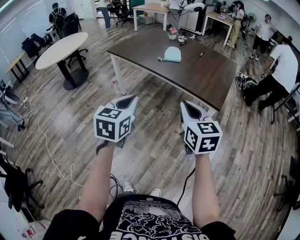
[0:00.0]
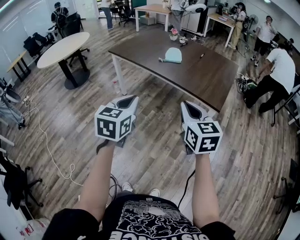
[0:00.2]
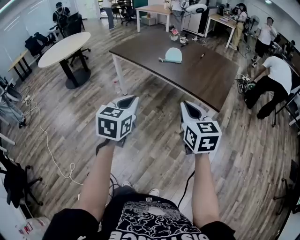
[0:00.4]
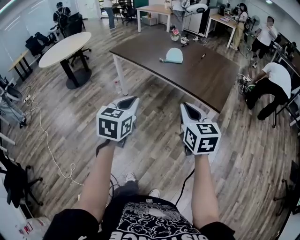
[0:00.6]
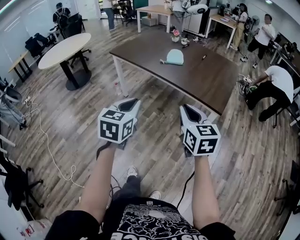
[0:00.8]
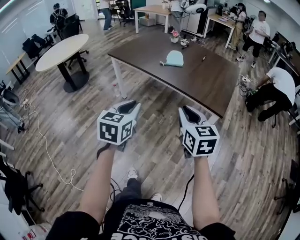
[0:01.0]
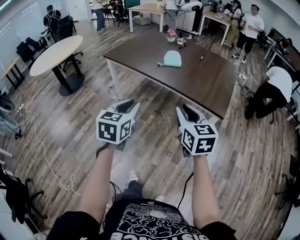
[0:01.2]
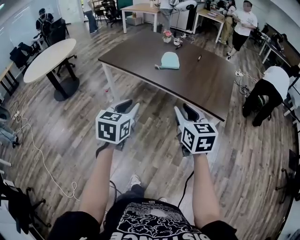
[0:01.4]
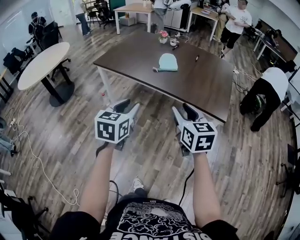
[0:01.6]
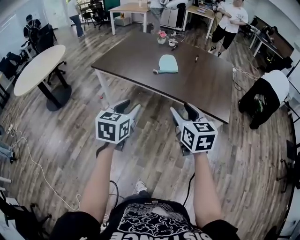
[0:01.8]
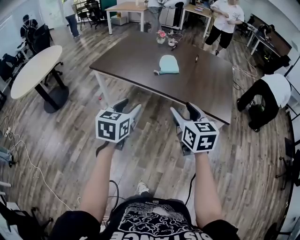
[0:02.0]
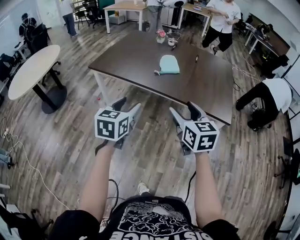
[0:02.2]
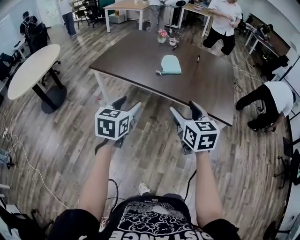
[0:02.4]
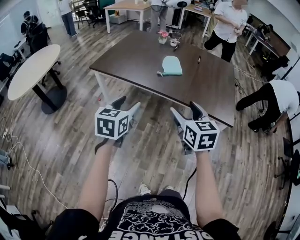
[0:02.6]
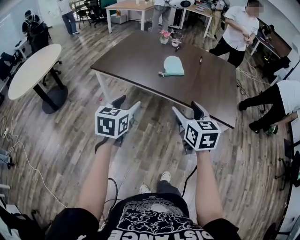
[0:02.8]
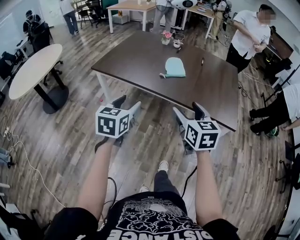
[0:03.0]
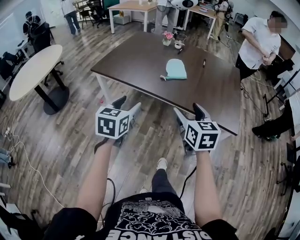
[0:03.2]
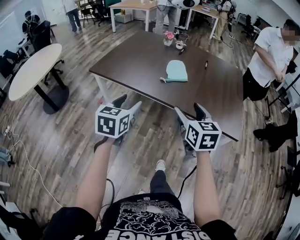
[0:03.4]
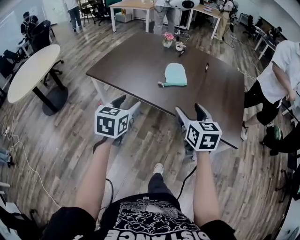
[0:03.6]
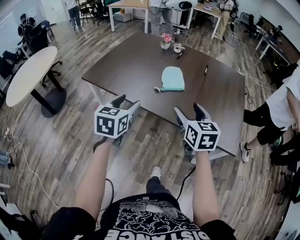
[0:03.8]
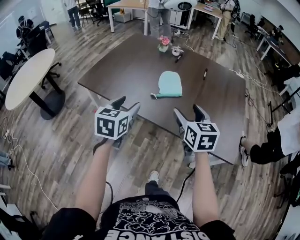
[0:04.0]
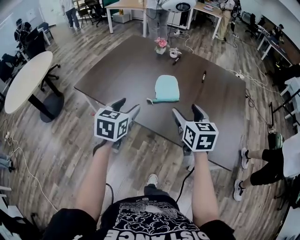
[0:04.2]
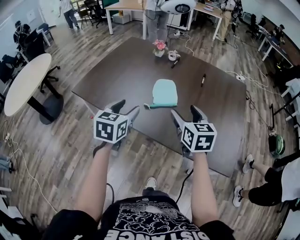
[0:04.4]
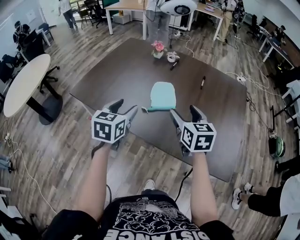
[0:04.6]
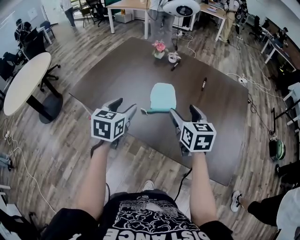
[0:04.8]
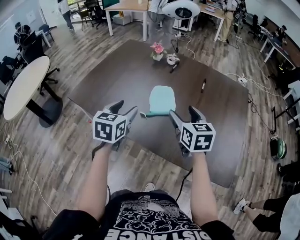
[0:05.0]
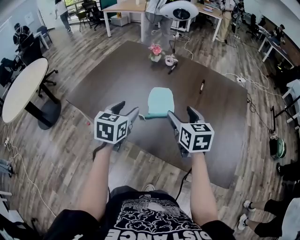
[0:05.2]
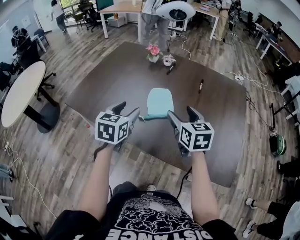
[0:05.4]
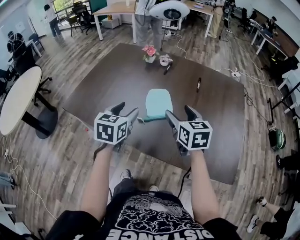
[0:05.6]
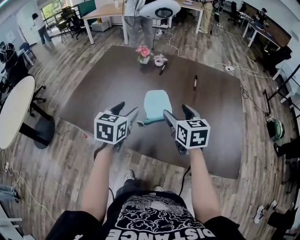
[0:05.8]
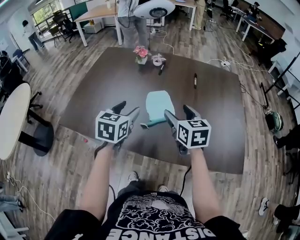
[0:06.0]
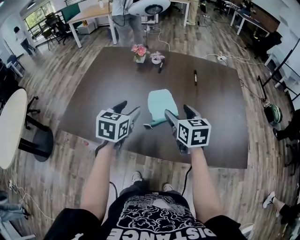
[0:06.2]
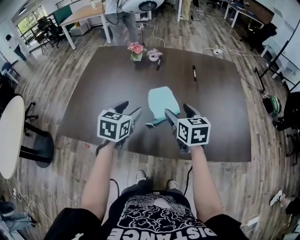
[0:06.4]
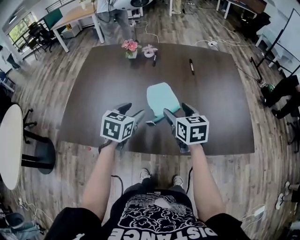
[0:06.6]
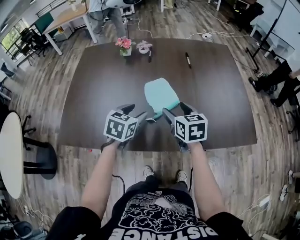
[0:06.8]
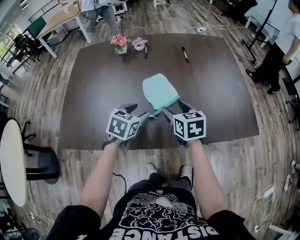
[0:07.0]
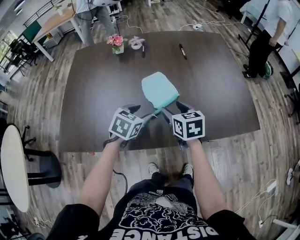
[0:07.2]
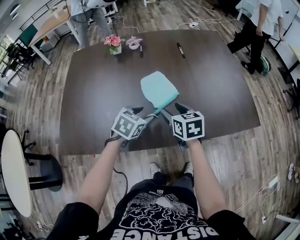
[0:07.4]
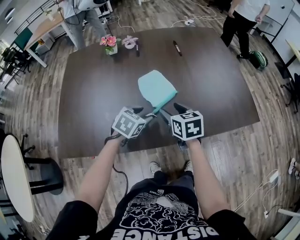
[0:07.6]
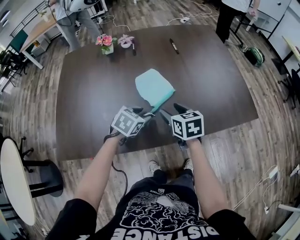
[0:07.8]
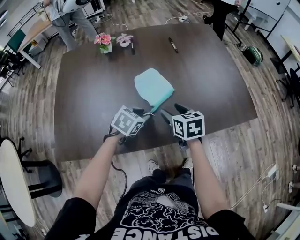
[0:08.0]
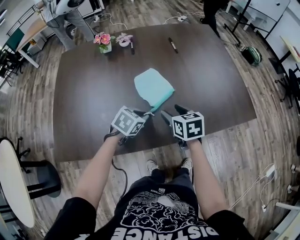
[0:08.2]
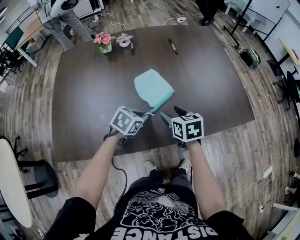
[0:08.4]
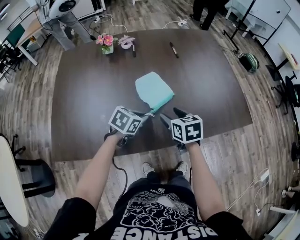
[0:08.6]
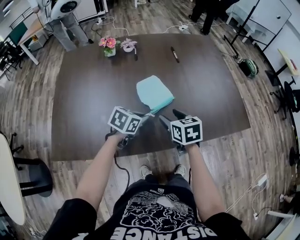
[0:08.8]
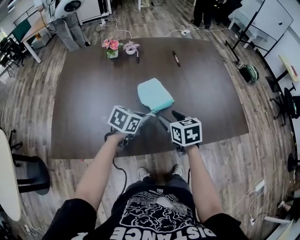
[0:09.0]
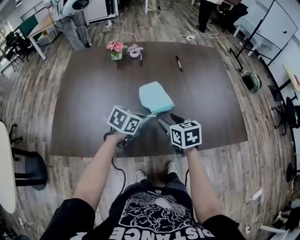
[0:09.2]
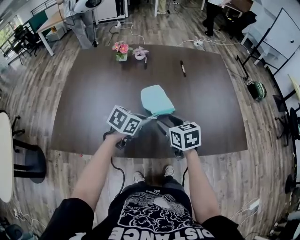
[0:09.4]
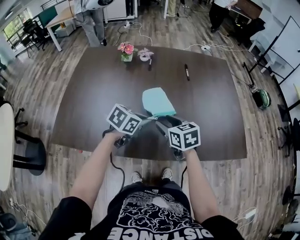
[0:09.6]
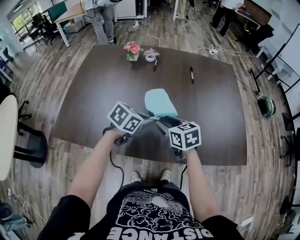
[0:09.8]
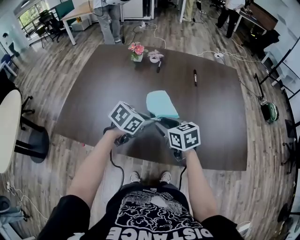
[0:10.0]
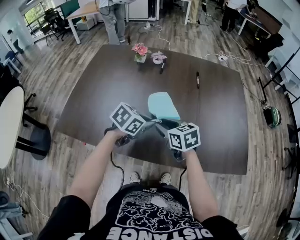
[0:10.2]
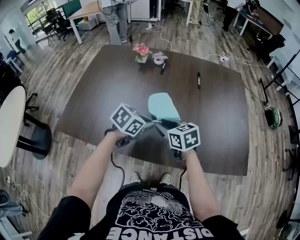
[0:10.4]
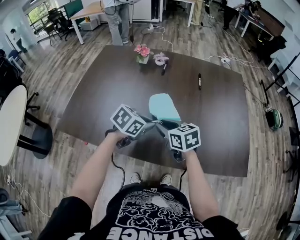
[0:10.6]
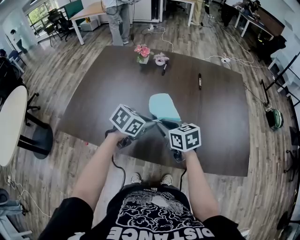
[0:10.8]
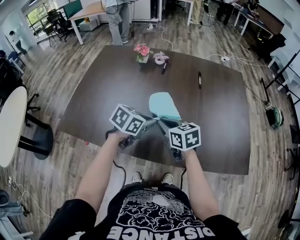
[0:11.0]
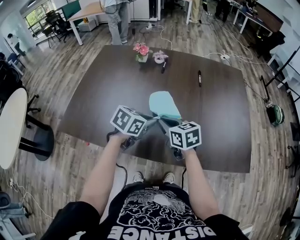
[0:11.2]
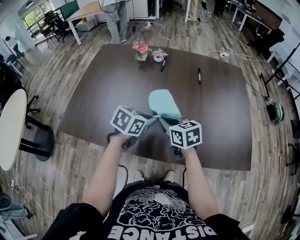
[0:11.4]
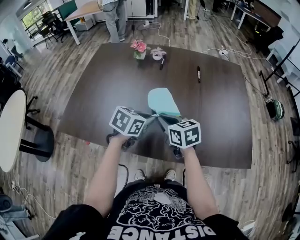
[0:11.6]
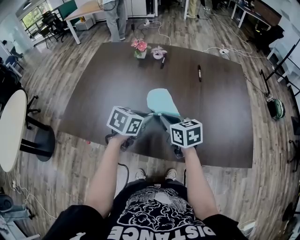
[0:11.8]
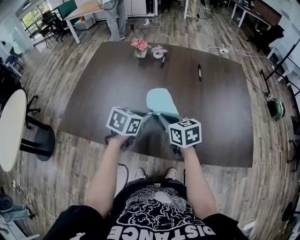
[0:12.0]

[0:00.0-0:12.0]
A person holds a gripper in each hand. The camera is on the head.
0:00.0 to 0:01.6: The left gripper is displaced forward by about 15 cm, and opens. The right gripper goes about 15 cm forward and to the left, and opens up.
0:01.6 to 0:03.0: Both grippers move forward and to the left, some 15 cm. The left gripper opens up, while the right gripper opens its fingers.
0:03.0 to 0:04.4: The two grippers go approximately 25 cm forward.
0:04.4 to 0:06.0: The two grippers go some 10 cm forward.
0:06.0 to 0:07.6: Both grippers travel together downward, roughly 15 cm. The left gripper turns by approximately 50 degrees. The right gripper swivels approximately 20 degrees.
0:07.6 to 0:09.0: The left gripper closes up.
0:09.0 to 0:10.4: The right gripper changes place by roughly 5 cm, swivels roughly 30 degrees, and closes up.
0:10.4 to 0:12.0: The grippers move only a little.

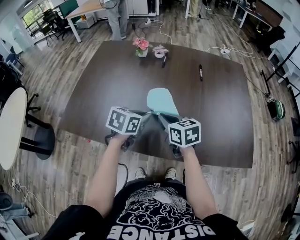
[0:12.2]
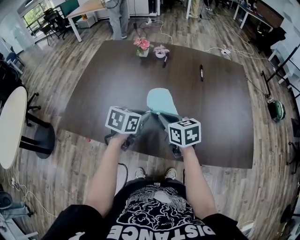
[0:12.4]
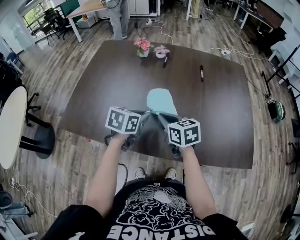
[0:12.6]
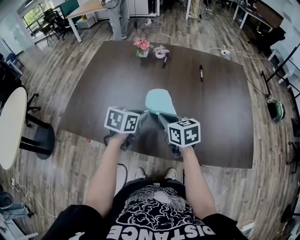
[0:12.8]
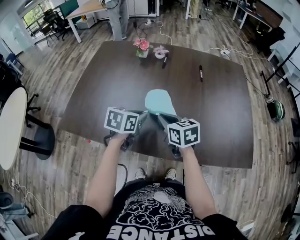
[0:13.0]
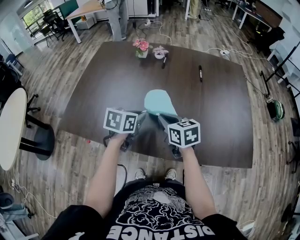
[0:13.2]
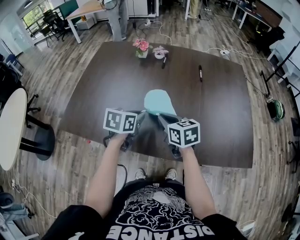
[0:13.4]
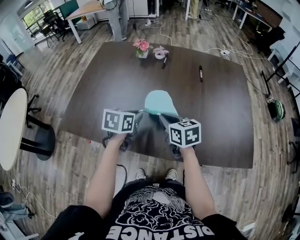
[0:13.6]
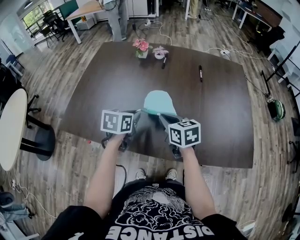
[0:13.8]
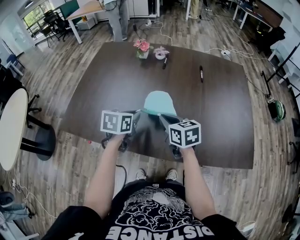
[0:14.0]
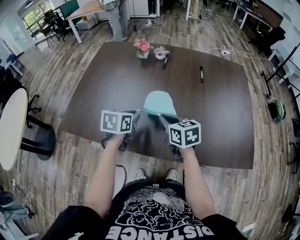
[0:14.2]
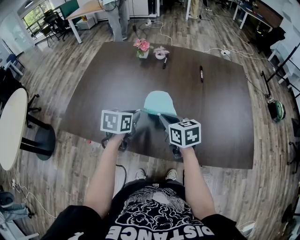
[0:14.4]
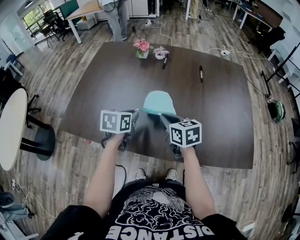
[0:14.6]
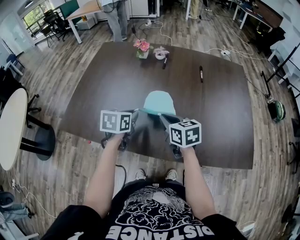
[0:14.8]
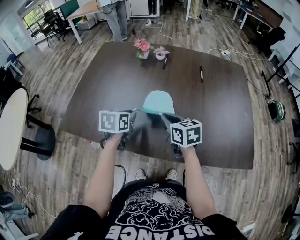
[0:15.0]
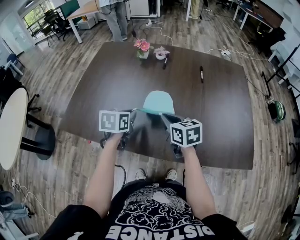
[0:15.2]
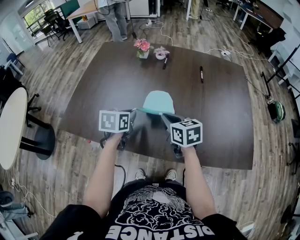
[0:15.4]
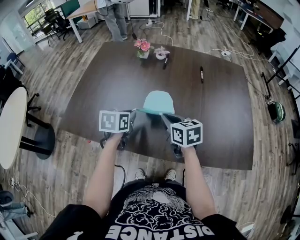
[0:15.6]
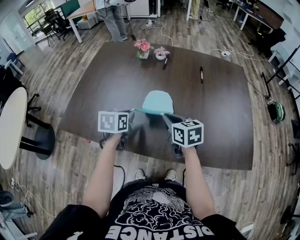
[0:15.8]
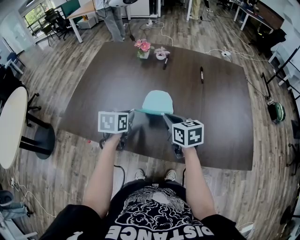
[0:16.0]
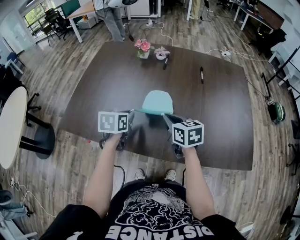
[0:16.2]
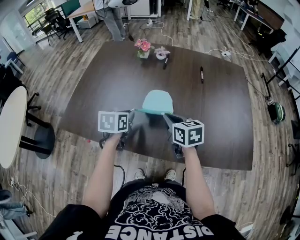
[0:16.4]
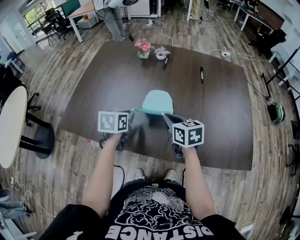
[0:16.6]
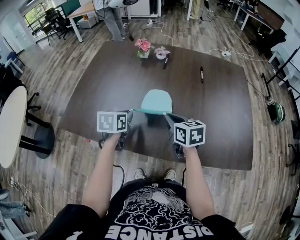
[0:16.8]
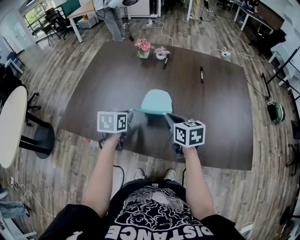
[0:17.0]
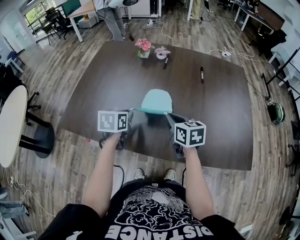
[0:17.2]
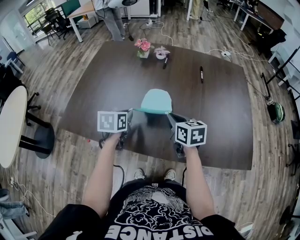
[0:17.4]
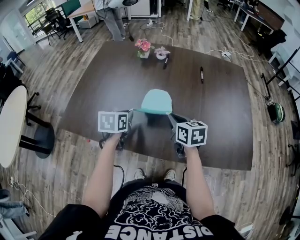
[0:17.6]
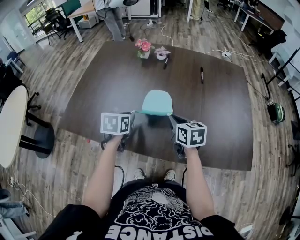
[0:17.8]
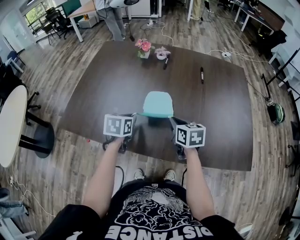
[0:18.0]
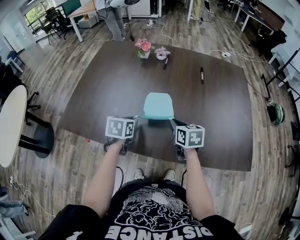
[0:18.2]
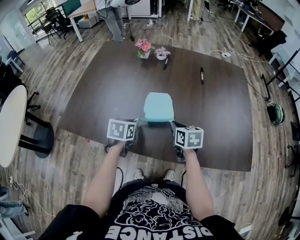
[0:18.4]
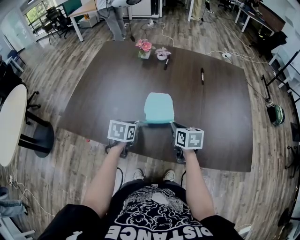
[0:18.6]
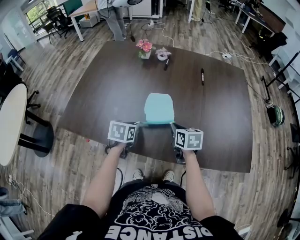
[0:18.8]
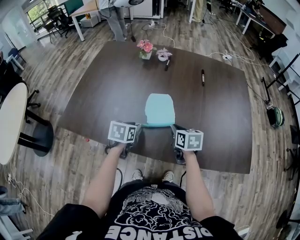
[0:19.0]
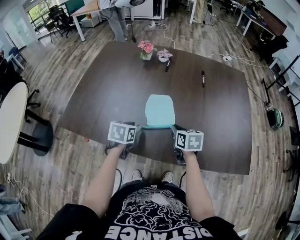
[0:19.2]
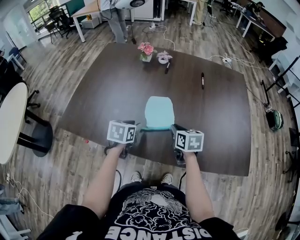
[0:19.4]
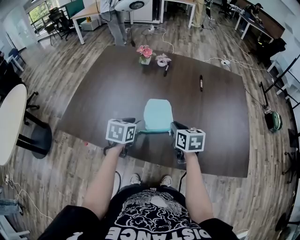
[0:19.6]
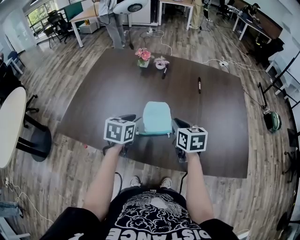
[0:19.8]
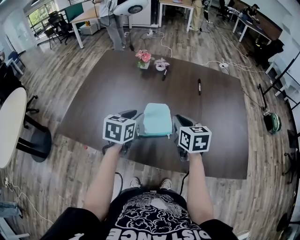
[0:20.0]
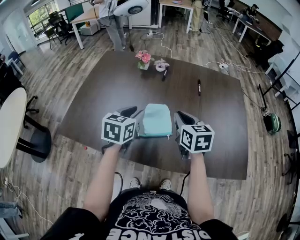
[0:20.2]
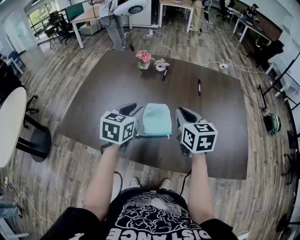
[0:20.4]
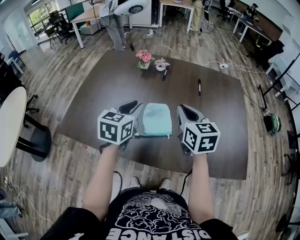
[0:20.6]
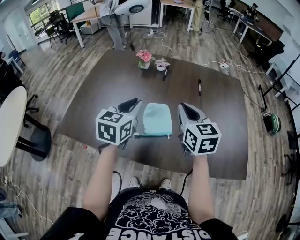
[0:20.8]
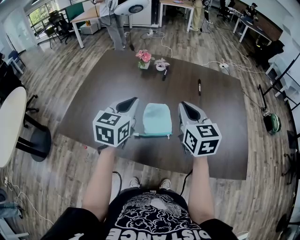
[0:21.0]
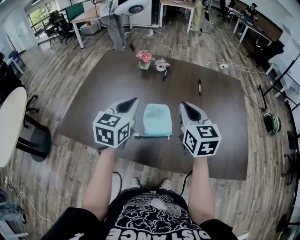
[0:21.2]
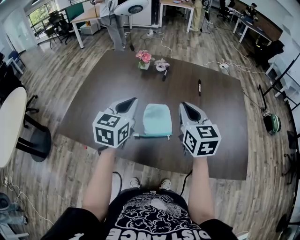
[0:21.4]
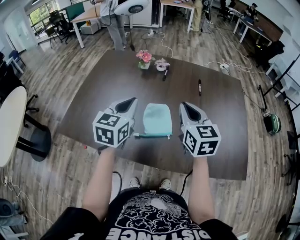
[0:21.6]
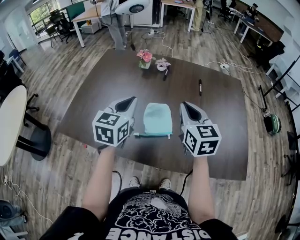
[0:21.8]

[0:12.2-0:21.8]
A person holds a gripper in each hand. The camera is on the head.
0:12.2 to 0:13.8: The left gripper moves some 5 cm.
0:13.8 to 0:17.0: There are only small adjustments of the grippers.
0:17.0 to 0:18.6: Both grippers move downward, about 5 cm.
0:18.6 to 0:20.2: Both grippers move upward, some 15 cm. The left gripper rotates some 20 degrees, and opens up.
0:20.2 to 0:21.8: Both grippers move upward, roughly 5 cm. The left gripper closes.

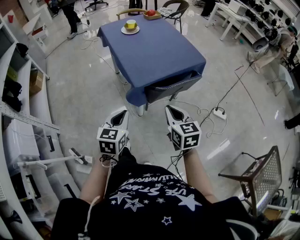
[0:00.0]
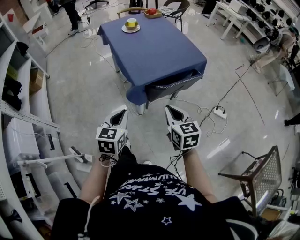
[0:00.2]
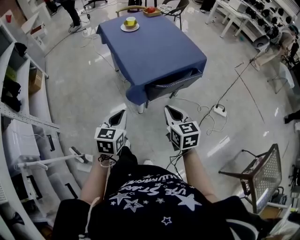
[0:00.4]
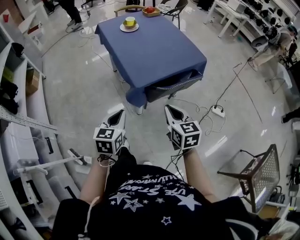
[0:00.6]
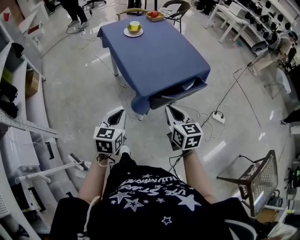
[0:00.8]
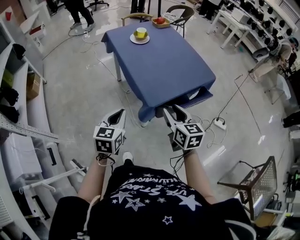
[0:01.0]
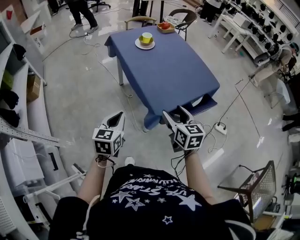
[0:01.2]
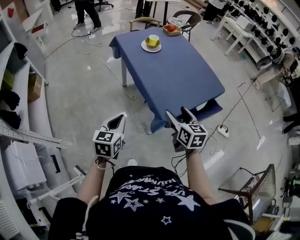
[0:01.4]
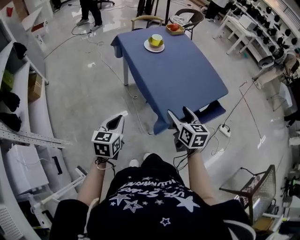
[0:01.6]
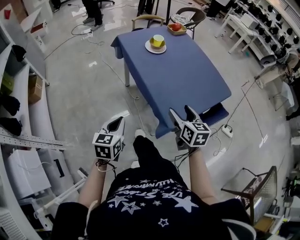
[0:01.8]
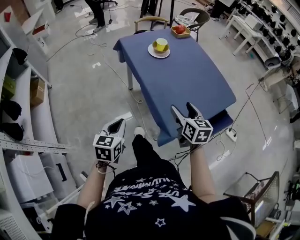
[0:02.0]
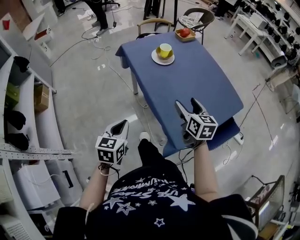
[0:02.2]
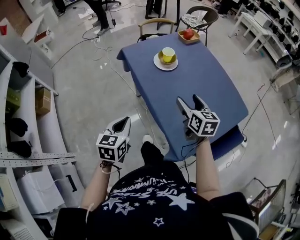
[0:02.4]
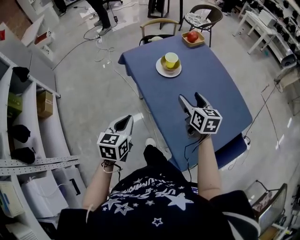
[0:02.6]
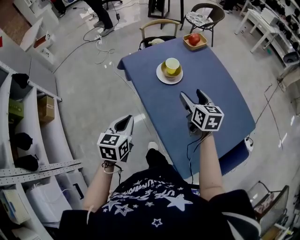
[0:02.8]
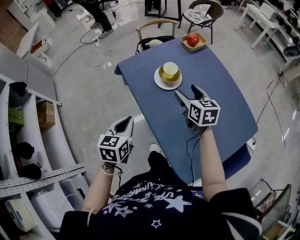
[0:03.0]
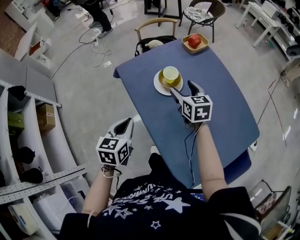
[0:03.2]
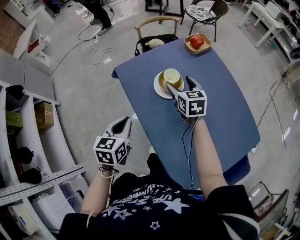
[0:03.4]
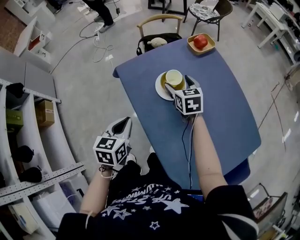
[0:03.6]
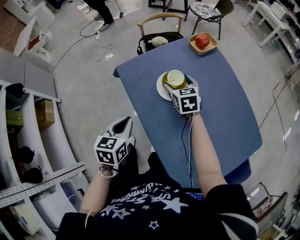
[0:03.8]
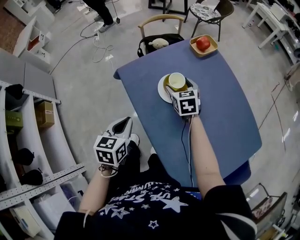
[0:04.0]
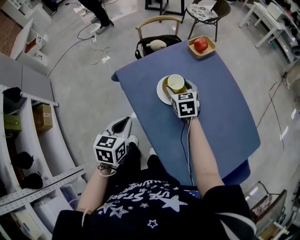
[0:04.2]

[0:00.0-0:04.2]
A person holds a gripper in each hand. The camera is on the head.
0:00.0 to 0:01.4: The left gripper is displaced to the left and forward by about 25 cm; the right gripper goes about 25 cm forward and to the left, and opens up.
0:01.4 to 0:02.8: The two grippers go approximately 35 cm forward.
0:02.8 to 0:04.2: The left gripper shifts some 15 cm forward; the right gripper moves forward and downward, about 20 cm, and turns by some 20 degrees.
